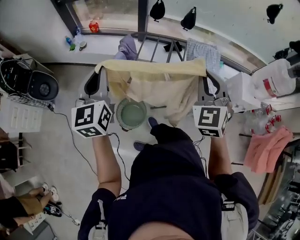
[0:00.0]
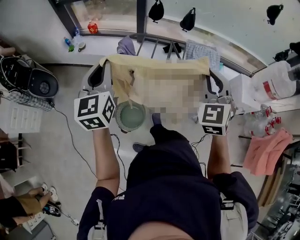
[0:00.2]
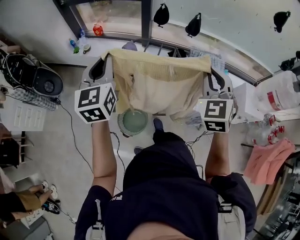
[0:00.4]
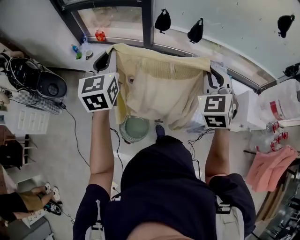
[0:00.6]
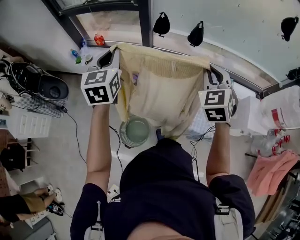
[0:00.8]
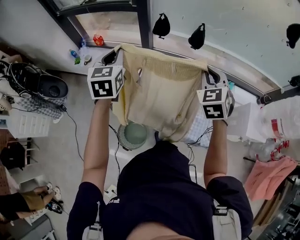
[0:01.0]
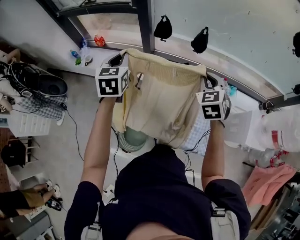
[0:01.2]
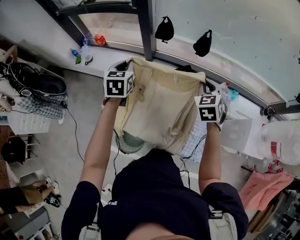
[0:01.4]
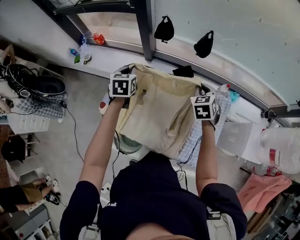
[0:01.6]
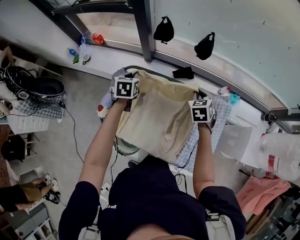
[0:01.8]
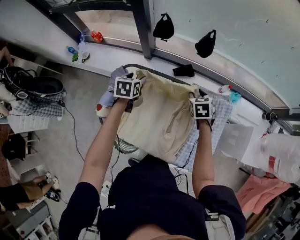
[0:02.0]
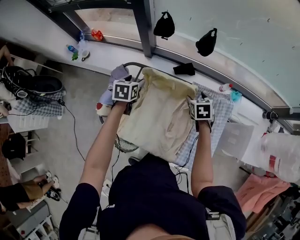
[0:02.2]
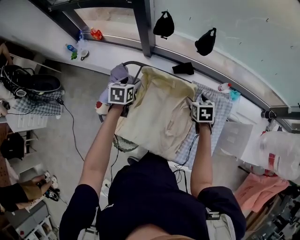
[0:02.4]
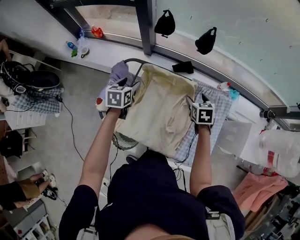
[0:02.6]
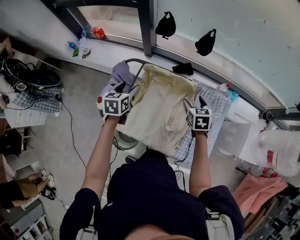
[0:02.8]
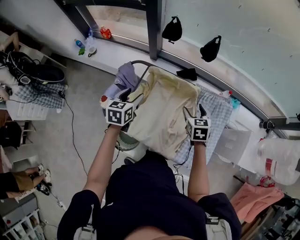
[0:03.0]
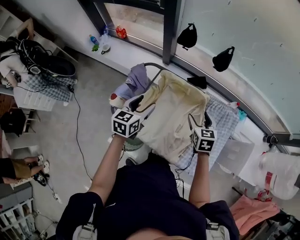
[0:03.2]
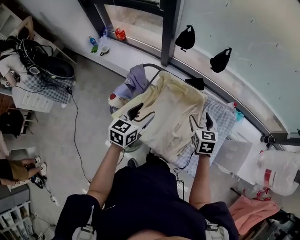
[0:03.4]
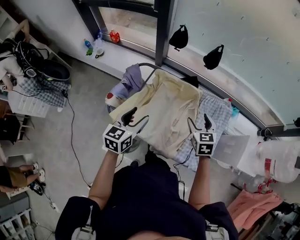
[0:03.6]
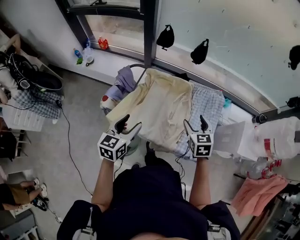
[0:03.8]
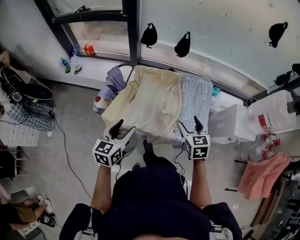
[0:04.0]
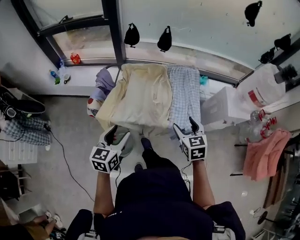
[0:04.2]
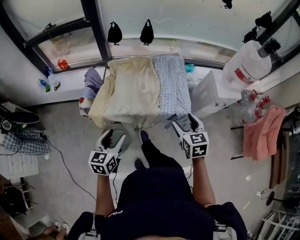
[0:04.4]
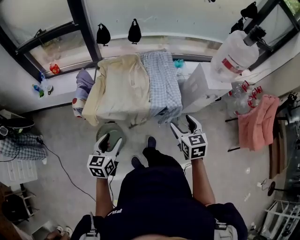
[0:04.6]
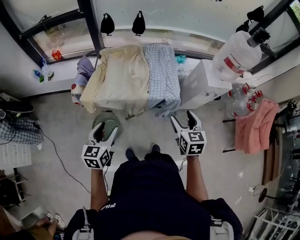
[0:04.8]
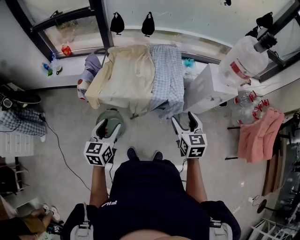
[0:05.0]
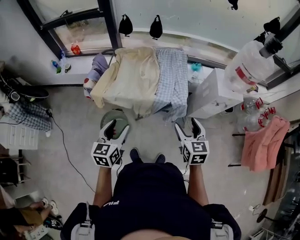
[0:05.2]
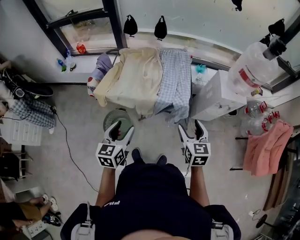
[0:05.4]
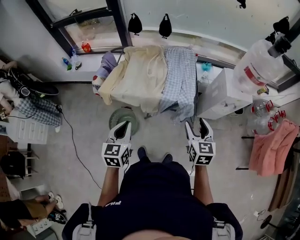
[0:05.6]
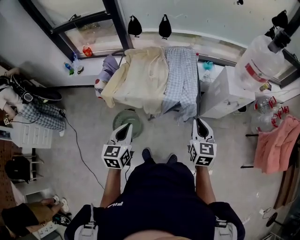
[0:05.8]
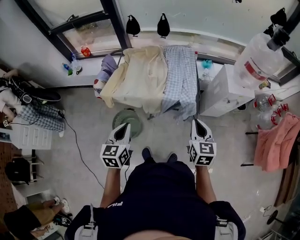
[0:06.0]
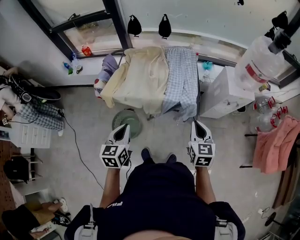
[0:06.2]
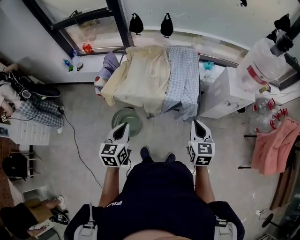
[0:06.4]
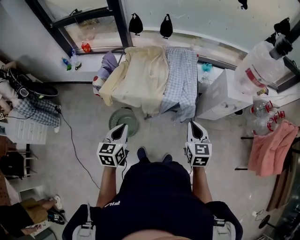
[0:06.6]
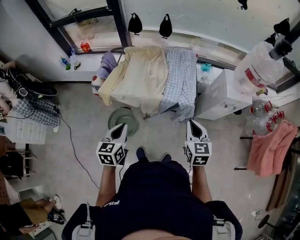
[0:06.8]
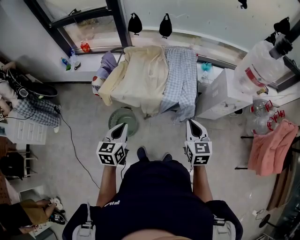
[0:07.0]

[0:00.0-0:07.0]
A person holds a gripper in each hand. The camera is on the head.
0:00.0 to 0:01.4: The pair of grippers is taken forward, some 40 cm. The right gripper goes about 15 cm downward, and swivels about 30 degrees; the left gripper rotates roughly 30 degrees.
0:01.4 to 0:02.8: The right gripper goes approximately 15 cm downward, turns by some 20 degrees, and opens its fingers. The left gripper moves downward and backward, approximately 15 cm, and opens its fingers.
0:02.8 to 0:04.2: The two grippers go some 35 cm backward. The left gripper changes its angle by some 20 degrees.
0:04.2 to 0:05.6: The left gripper goes some 20 cm backward and to the right, and closes its fingers; the right gripper heads to the right and backward, covering about 20 cm.
0:05.6 to 0:07.0: The right gripper closes its fingers.

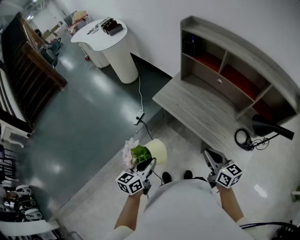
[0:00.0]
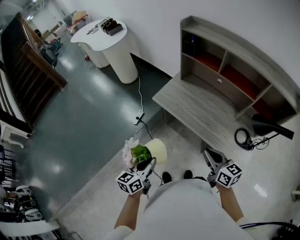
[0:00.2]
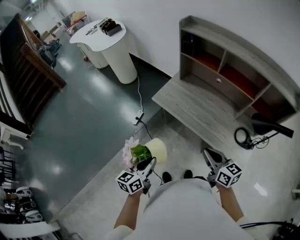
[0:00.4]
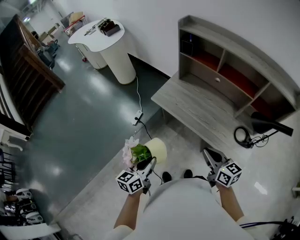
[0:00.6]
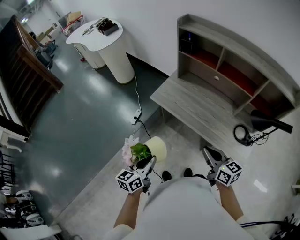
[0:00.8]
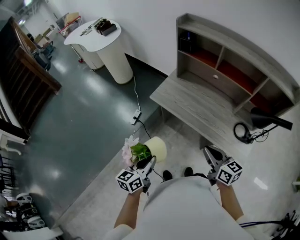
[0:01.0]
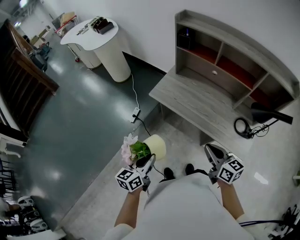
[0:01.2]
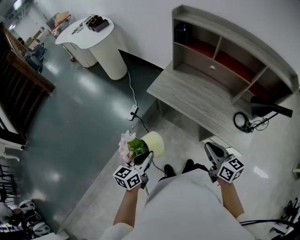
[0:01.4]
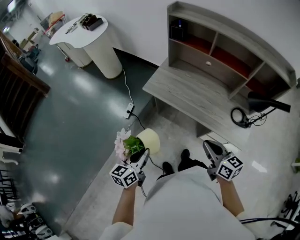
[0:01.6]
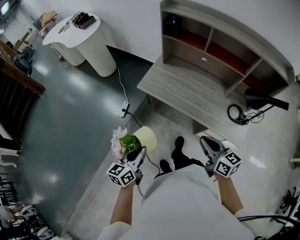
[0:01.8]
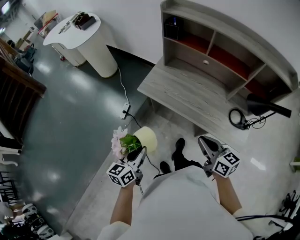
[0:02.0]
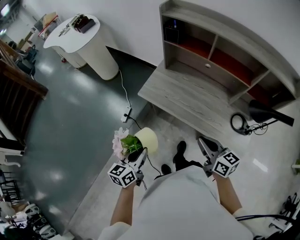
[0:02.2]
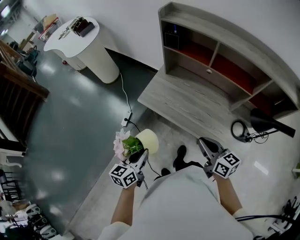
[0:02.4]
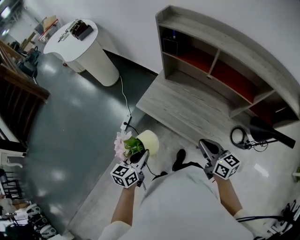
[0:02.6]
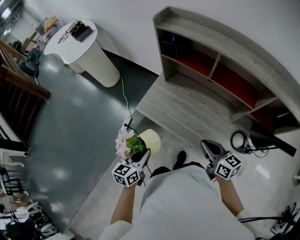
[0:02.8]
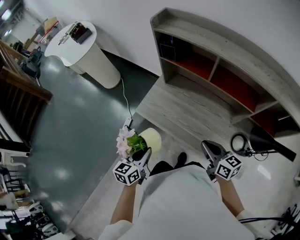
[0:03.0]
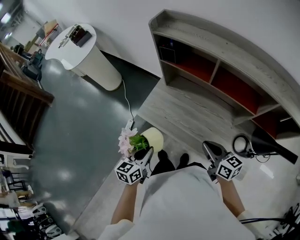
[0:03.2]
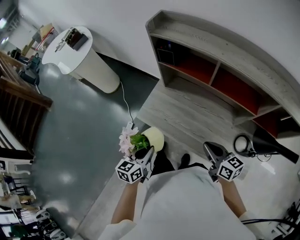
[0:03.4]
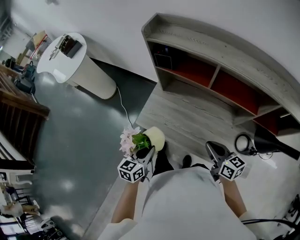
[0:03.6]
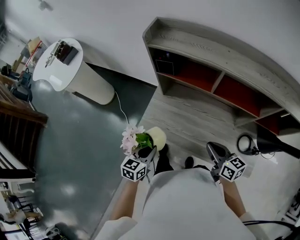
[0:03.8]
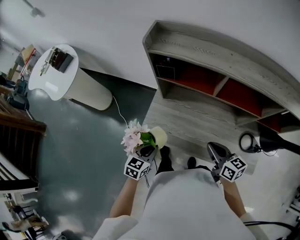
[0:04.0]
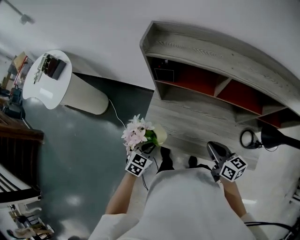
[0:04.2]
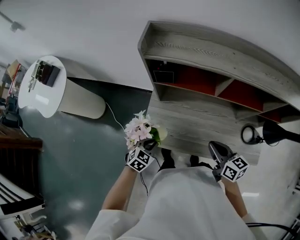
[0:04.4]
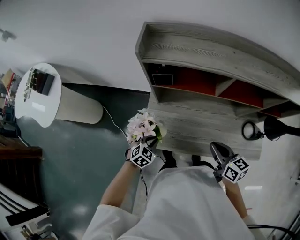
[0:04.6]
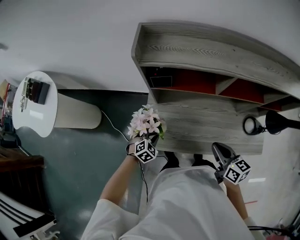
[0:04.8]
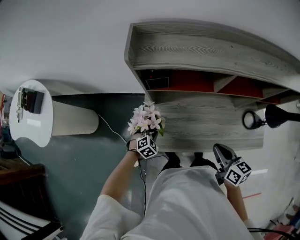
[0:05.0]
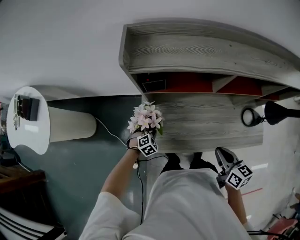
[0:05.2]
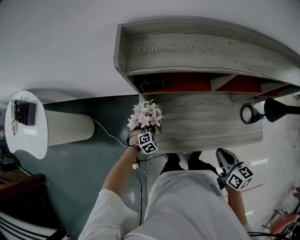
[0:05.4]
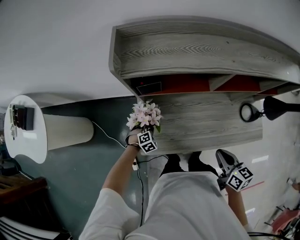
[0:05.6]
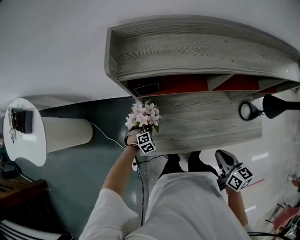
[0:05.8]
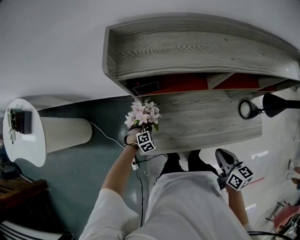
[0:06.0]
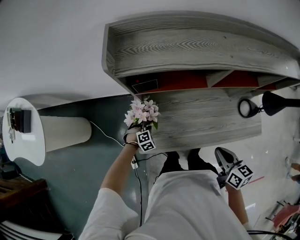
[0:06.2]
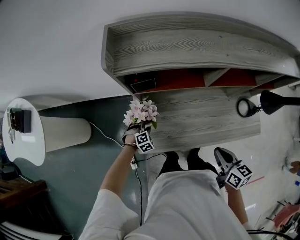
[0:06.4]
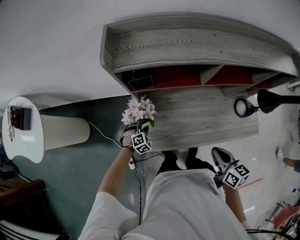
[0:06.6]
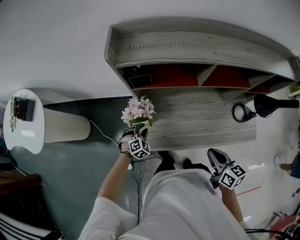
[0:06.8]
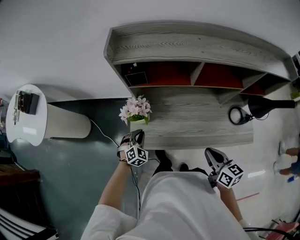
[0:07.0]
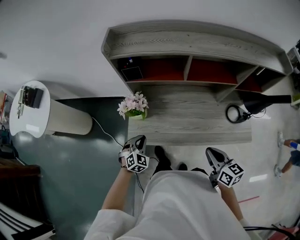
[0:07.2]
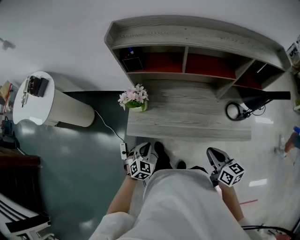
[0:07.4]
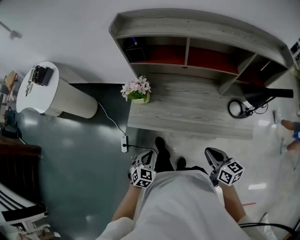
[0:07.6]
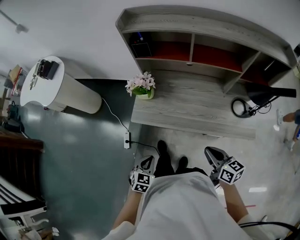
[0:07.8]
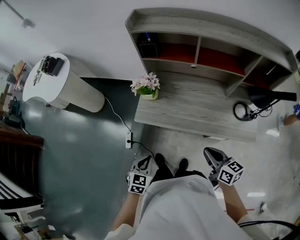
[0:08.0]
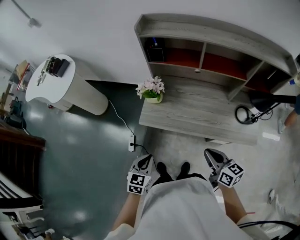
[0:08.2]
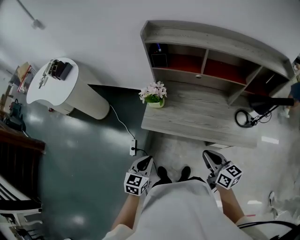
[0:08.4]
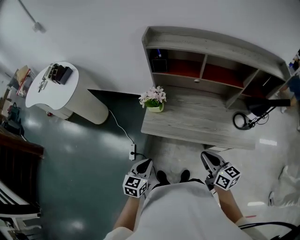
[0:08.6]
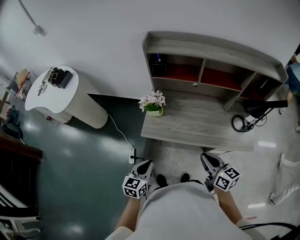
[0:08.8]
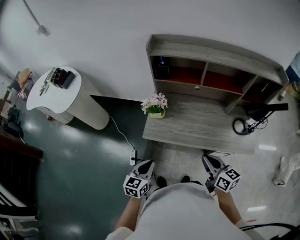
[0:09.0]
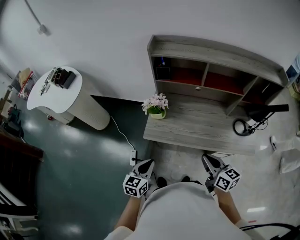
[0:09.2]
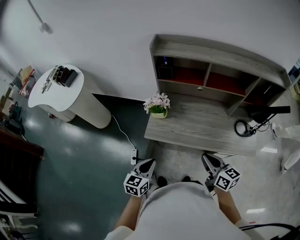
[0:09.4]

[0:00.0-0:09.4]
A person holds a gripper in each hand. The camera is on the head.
0:00.0 to 0:01.6: The right gripper shifts by about 5 cm; the left gripper goes approximately 5 cm to the left.
0:01.6 to 0:03.2: The right gripper shifts about 25 cm forward. The left gripper travels forward and to the right by about 25 cm.
0:03.2 to 0:04.8: The left gripper changes place by about 30 cm, and twists about 70 degrees clockwise, seen from behind. Meanwhile the right gripper ends up approximately 10 cm from where it was, and turns by approximately 30 degrees.
0:04.8 to 0:06.2: The left gripper travels downward and forward by some 15 cm, and swivels some 30 degrees.
0:06.2 to 0:07.8: The left gripper travels backward and upward by about 40 cm, and rotates around the line of its fingers by roughly 60 degrees, counterclockwise from behind. The right gripper is displaced backward and to the right by some 20 cm, and changes its angle by about 20 degrees.
0:07.8 to 0:09.4: The left gripper travels upward and to the left by roughly 15 cm, and changes its angle by approximately 30 degrees, while the right gripper goes roughly 10 cm to the left and upward.

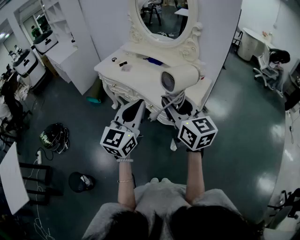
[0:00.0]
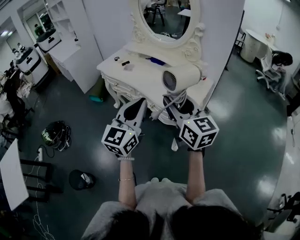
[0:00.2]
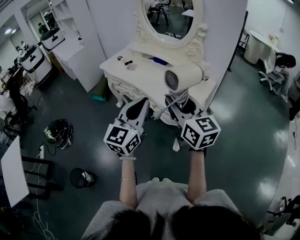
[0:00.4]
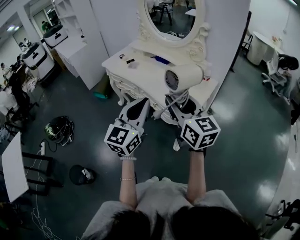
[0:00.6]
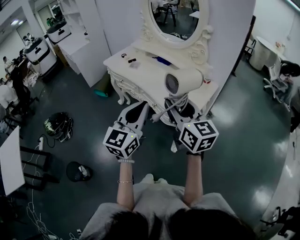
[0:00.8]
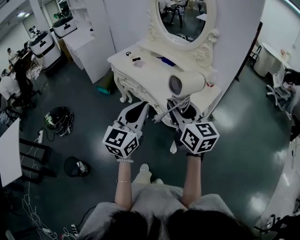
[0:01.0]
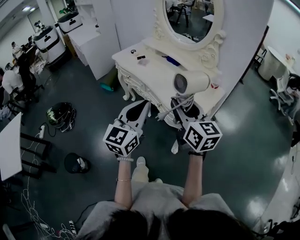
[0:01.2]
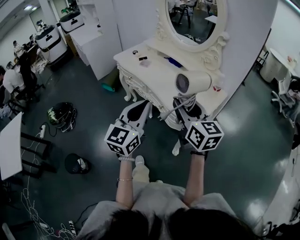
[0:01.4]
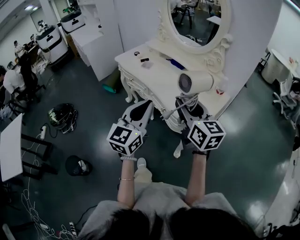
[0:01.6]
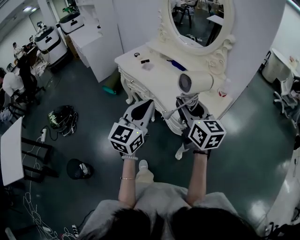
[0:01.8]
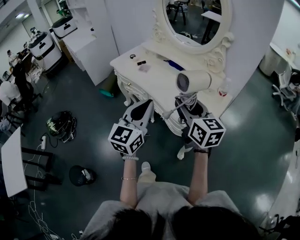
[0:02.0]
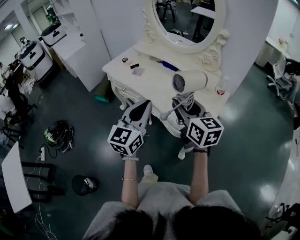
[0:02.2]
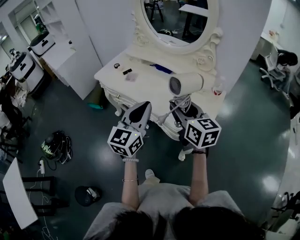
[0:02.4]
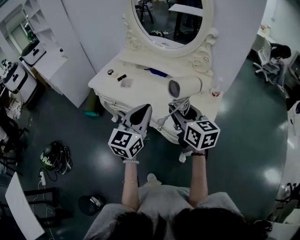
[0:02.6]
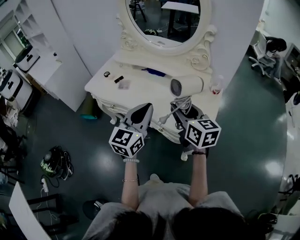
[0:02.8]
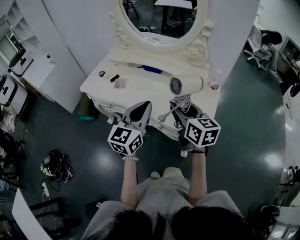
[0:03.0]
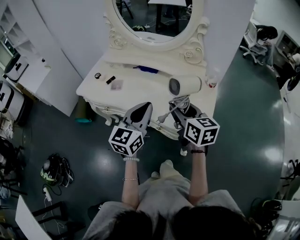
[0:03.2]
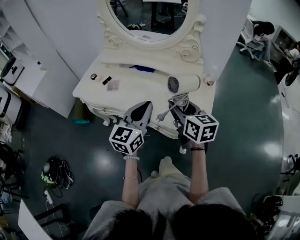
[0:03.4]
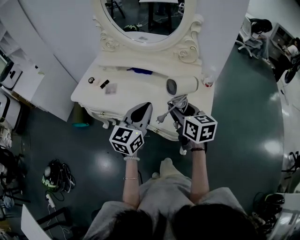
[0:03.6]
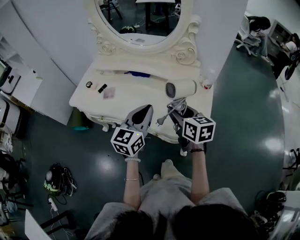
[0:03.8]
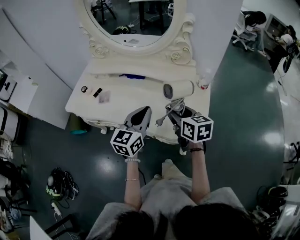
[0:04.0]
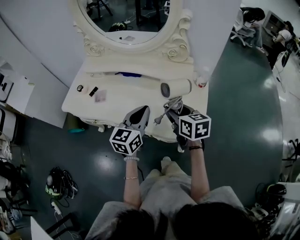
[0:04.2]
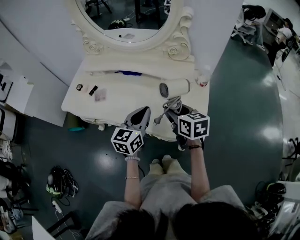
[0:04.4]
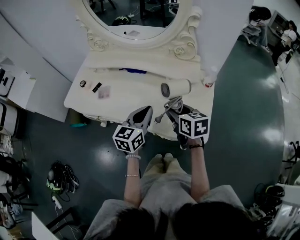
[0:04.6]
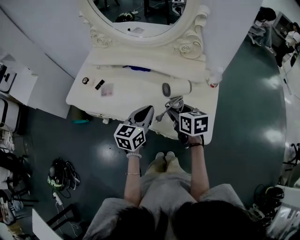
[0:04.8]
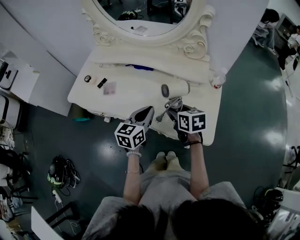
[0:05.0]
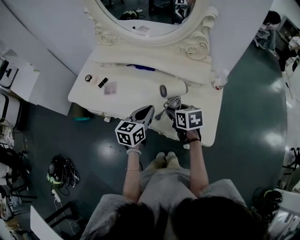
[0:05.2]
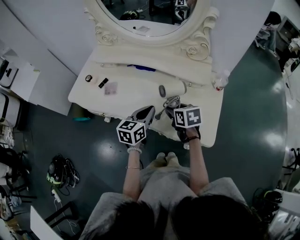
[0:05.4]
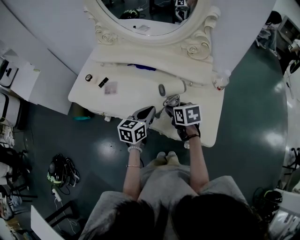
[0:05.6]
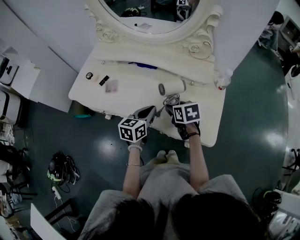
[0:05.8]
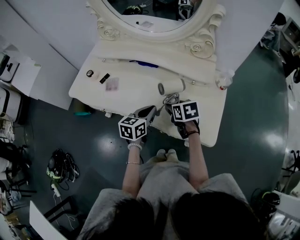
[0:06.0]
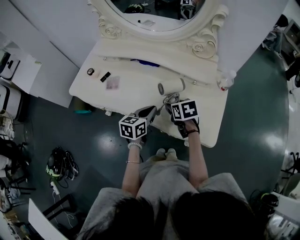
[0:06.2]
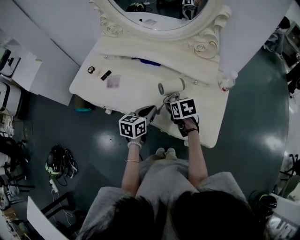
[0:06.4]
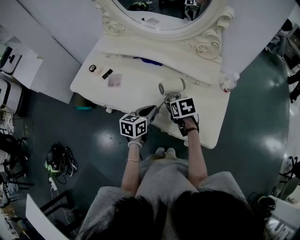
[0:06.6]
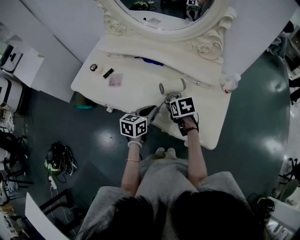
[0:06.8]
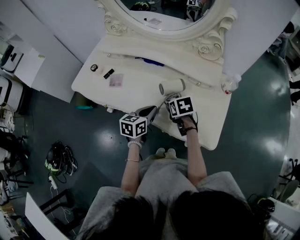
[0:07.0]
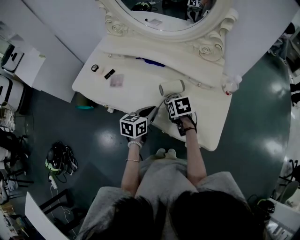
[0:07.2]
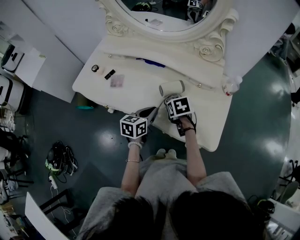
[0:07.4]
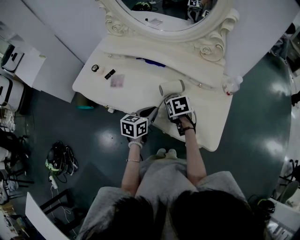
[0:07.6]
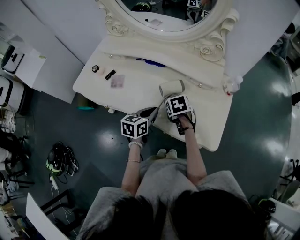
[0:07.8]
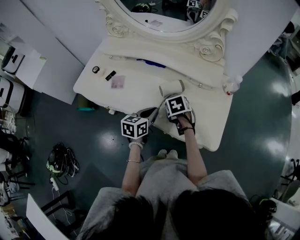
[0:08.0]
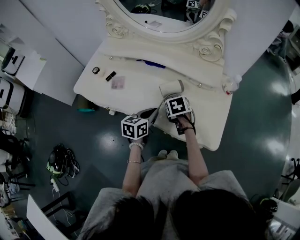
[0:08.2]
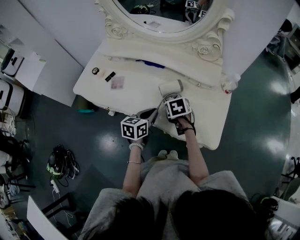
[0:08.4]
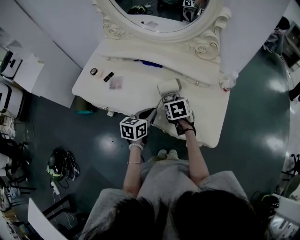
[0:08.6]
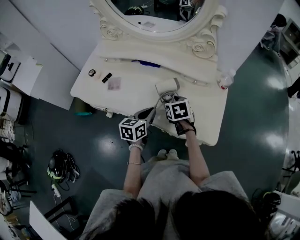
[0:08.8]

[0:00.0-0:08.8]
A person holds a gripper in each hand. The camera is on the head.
0:00.0 to 0:01.4: The grippers make only small movements.
0:01.4 to 0:03.0: The right gripper heads forward and downward, covering some 20 cm, and changes its angle by approximately 20 degrees, while the left gripper goes about 25 cm forward, and turns by about 20 degrees.
0:03.0 to 0:04.4: The right gripper goes about 15 cm downward and forward, while the left gripper goes roughly 15 cm forward, downward and to the right.
0:04.4 to 0:05.8: The left gripper heads downward, covering about 10 cm, while the right gripper heads downward and to the left, covering roughly 10 cm.
0:05.8 to 0:07.4: The right gripper shifts by approximately 5 cm.
0:07.4 to 0:08.8: The grippers make only small movements.
